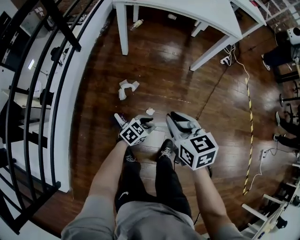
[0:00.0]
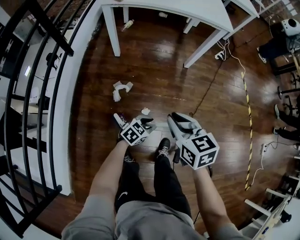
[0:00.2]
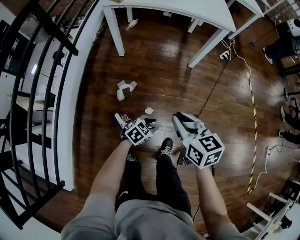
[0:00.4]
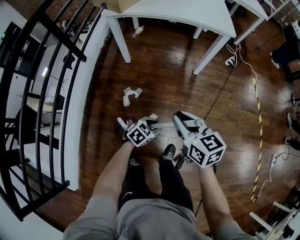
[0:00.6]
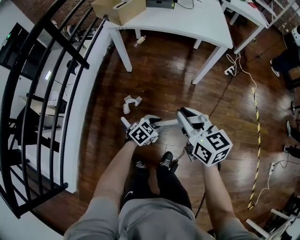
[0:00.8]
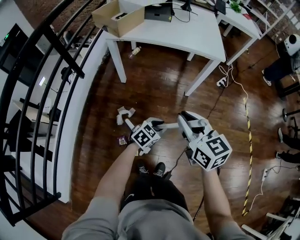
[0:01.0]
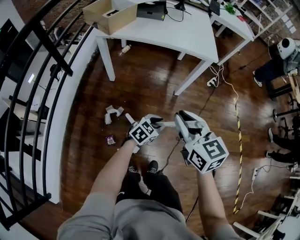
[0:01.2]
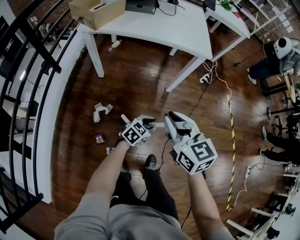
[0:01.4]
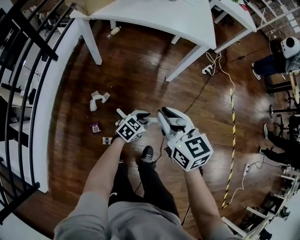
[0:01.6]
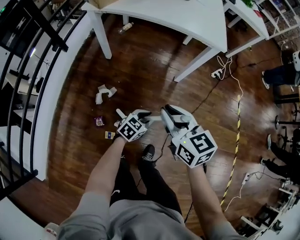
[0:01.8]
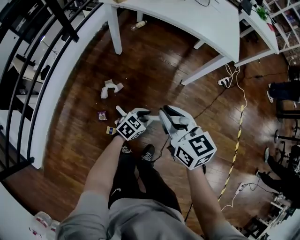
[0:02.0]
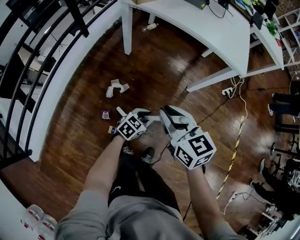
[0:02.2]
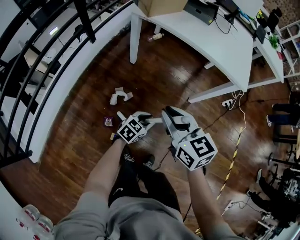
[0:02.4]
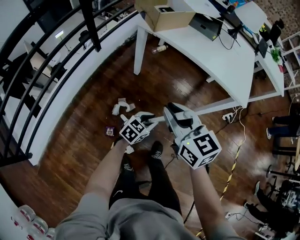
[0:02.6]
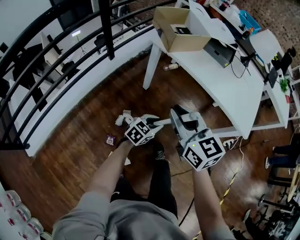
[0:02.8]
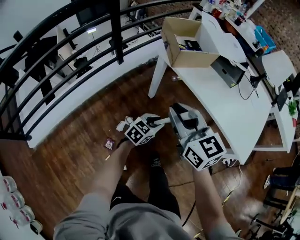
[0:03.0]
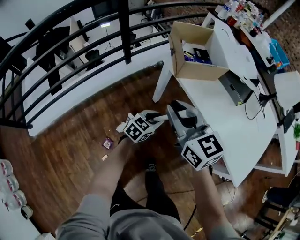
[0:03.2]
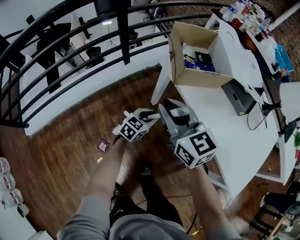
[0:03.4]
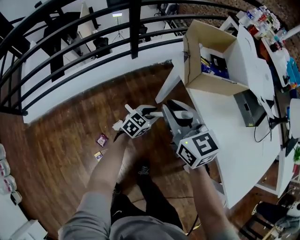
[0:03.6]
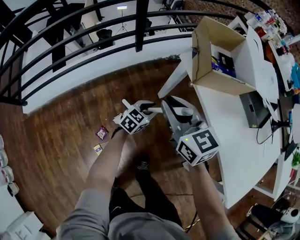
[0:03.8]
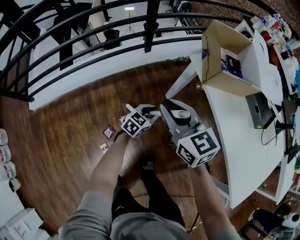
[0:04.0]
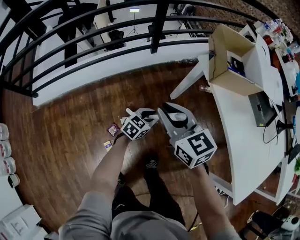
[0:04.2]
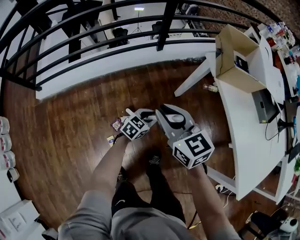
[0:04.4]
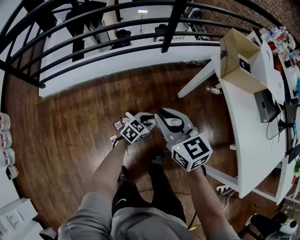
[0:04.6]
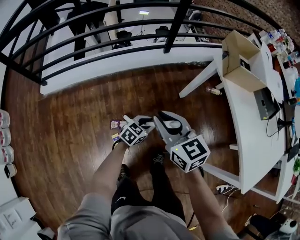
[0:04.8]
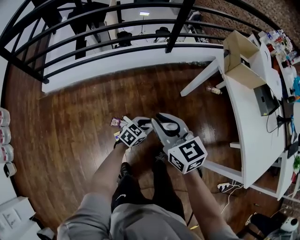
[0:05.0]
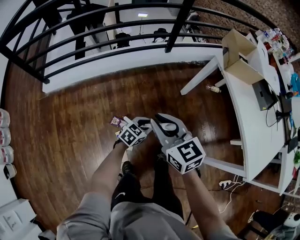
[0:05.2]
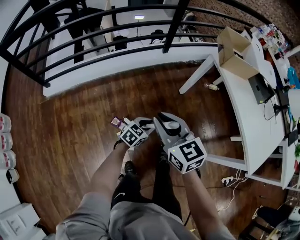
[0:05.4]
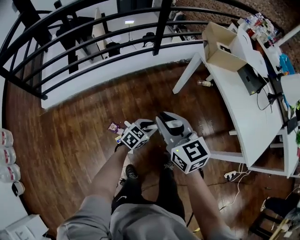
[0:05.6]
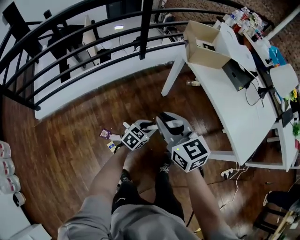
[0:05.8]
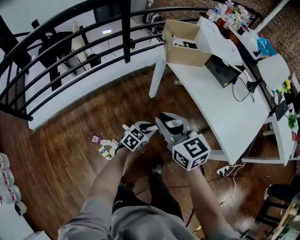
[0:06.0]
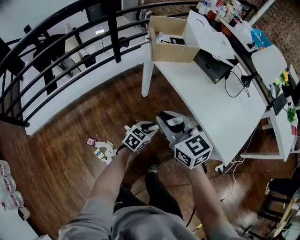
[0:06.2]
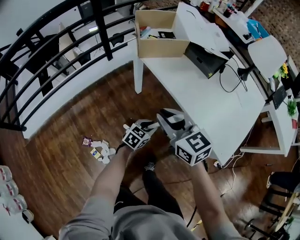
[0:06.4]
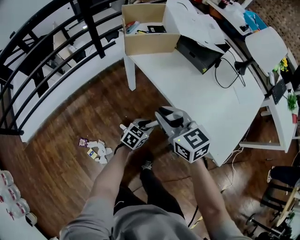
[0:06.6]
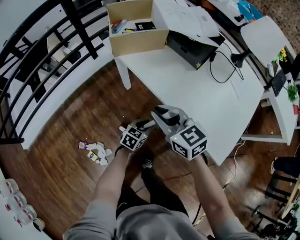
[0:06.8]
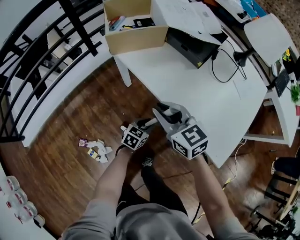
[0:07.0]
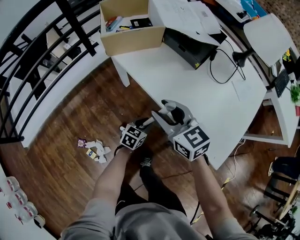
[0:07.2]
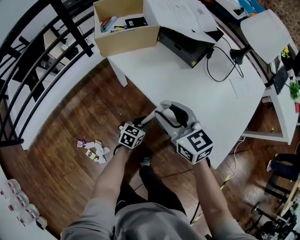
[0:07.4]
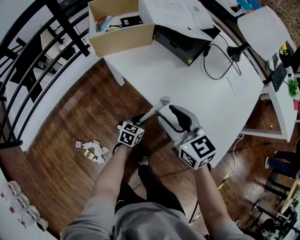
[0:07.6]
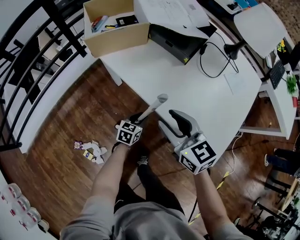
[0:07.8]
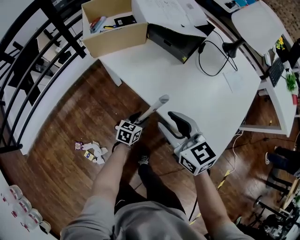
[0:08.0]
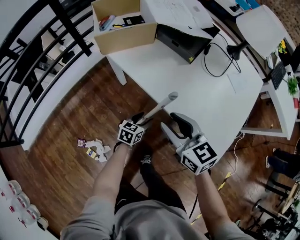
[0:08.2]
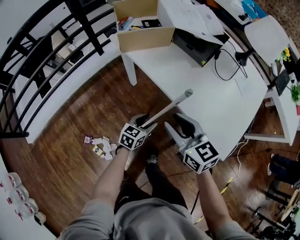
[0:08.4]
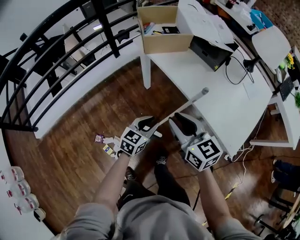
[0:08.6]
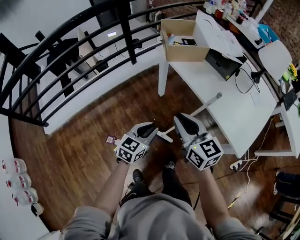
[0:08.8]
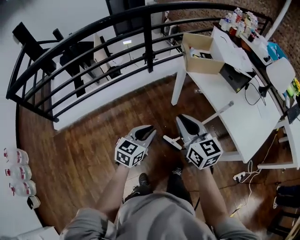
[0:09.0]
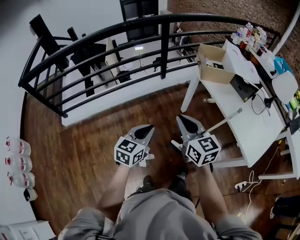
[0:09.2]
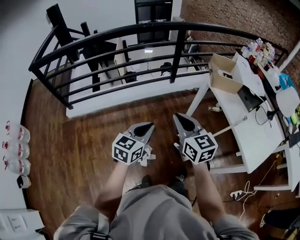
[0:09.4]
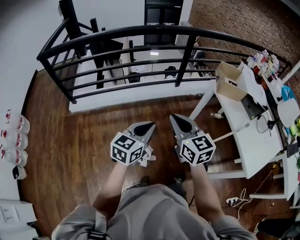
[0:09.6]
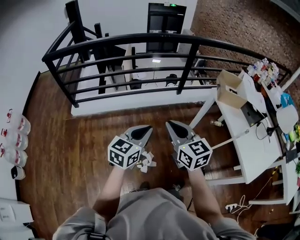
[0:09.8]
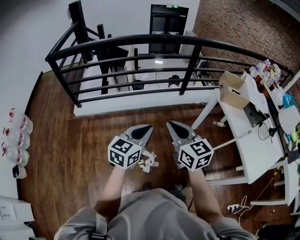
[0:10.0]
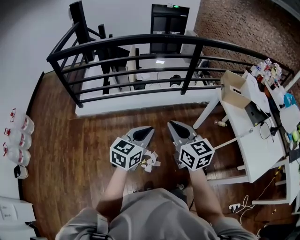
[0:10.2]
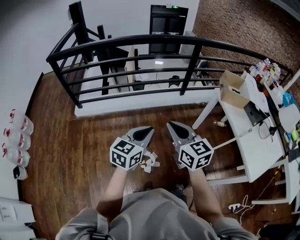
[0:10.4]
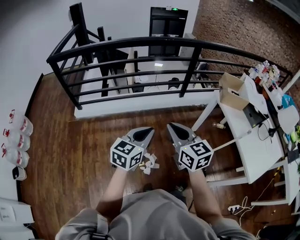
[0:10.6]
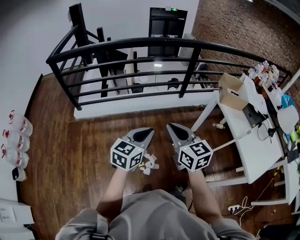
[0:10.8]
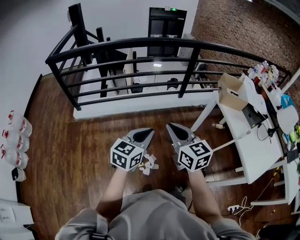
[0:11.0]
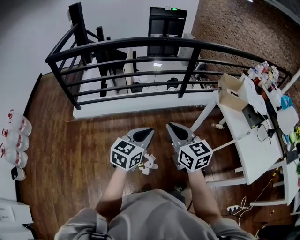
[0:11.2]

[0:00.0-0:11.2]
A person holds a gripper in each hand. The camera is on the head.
0:00.0 to 0:01.6: Both grippers travel together forward and to the right, roughly 25 cm.
0:01.6 to 0:03.2: The pair of grippers is taken approximately 40 cm. The left gripper rotates about 50 degrees. Meanwhile the right gripper changes its angle by some 50 degrees.
0:03.2 to 0:04.8: The two grippers go approximately 25 cm to the left, backward and downward. The right gripper swivels about 20 degrees; the left gripper changes its angle by roughly 20 degrees.
0:04.8 to 0:06.4: Both grippers move to the right, some 30 cm.
0:06.4 to 0:08.0: The right gripper heads to the right, covering some 15 cm, and opens up. The left gripper moves to the right, downward and forward, about 10 cm.
0:08.0 to 0:09.6: The two grippers travel together, about 60 cm. The left gripper turns by about 40 degrees, and closes its fingers; the right gripper swivels some 30 degrees, and closes its fingers.
0:09.6 to 0:11.2: The right gripper heads to the left, covering some 5 cm. Meanwhile the left gripper changes place by some 5 cm.

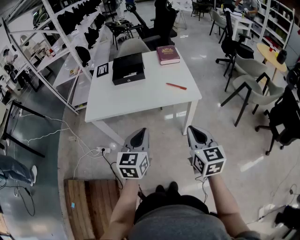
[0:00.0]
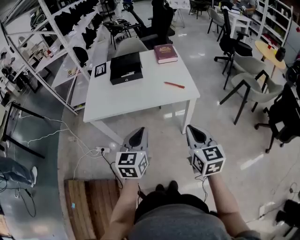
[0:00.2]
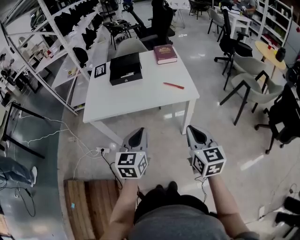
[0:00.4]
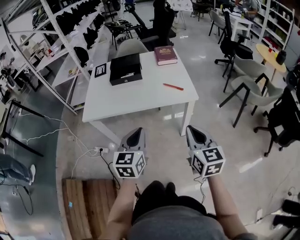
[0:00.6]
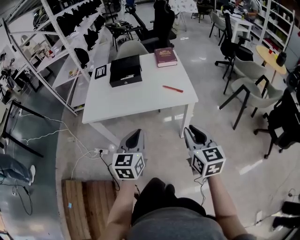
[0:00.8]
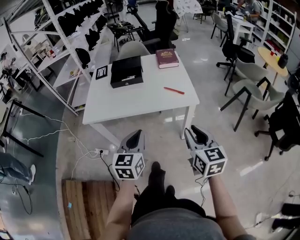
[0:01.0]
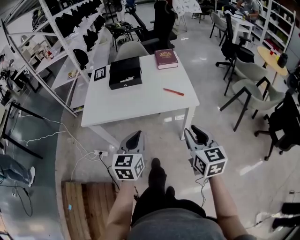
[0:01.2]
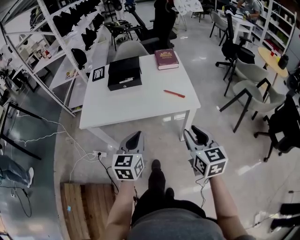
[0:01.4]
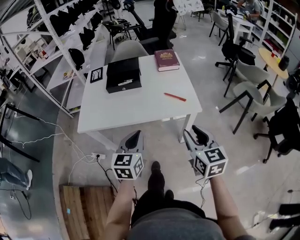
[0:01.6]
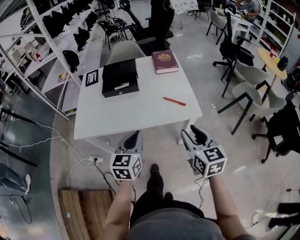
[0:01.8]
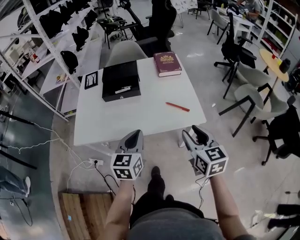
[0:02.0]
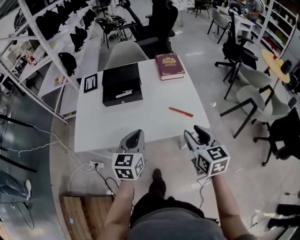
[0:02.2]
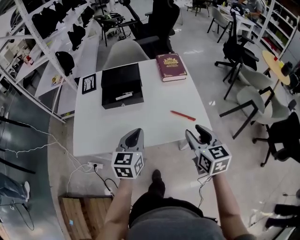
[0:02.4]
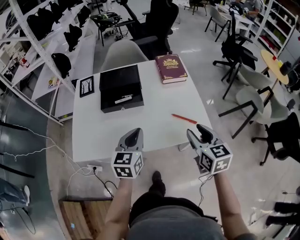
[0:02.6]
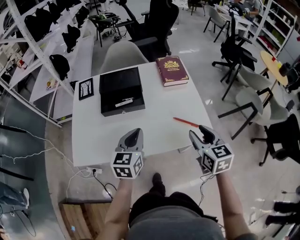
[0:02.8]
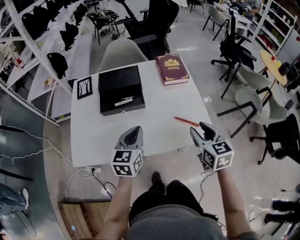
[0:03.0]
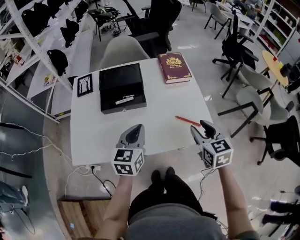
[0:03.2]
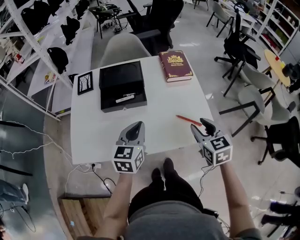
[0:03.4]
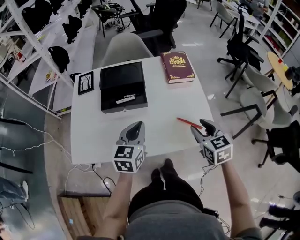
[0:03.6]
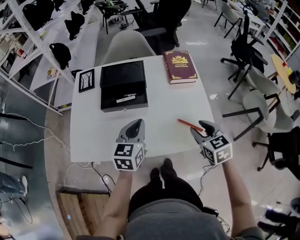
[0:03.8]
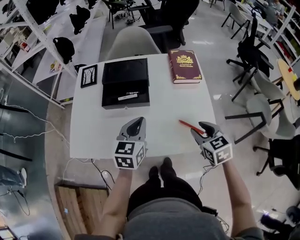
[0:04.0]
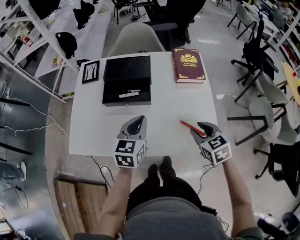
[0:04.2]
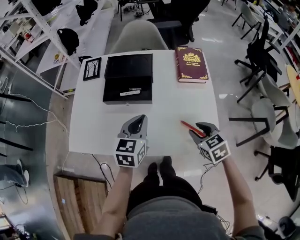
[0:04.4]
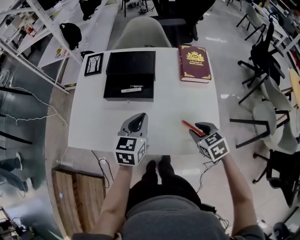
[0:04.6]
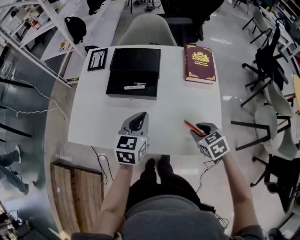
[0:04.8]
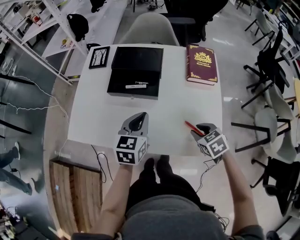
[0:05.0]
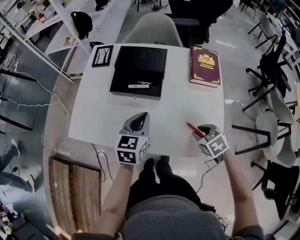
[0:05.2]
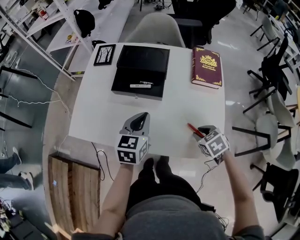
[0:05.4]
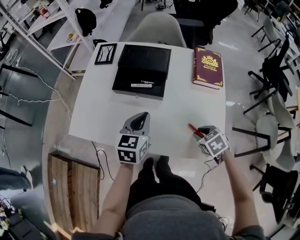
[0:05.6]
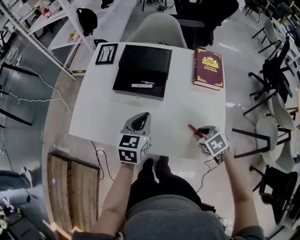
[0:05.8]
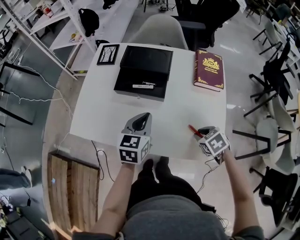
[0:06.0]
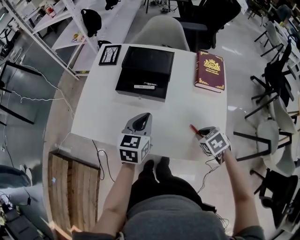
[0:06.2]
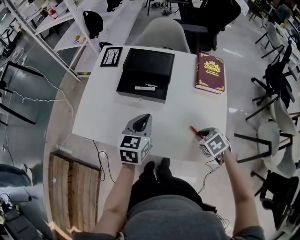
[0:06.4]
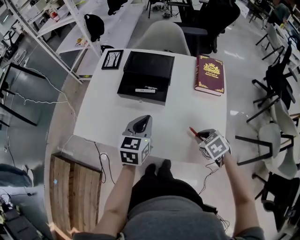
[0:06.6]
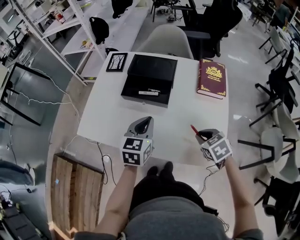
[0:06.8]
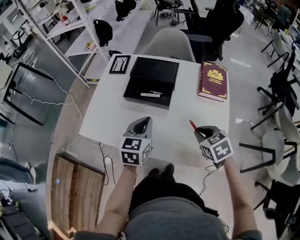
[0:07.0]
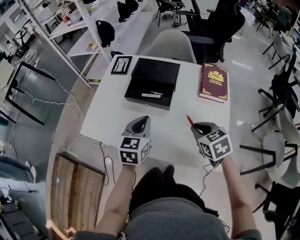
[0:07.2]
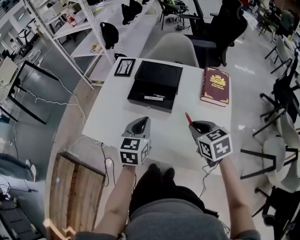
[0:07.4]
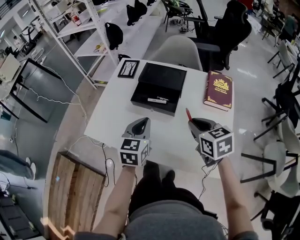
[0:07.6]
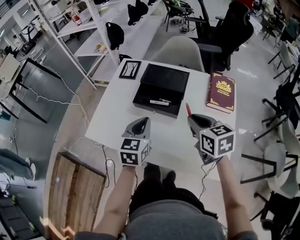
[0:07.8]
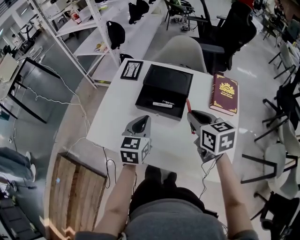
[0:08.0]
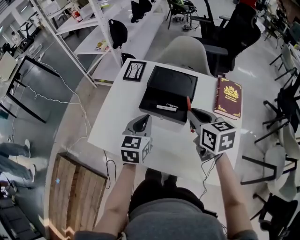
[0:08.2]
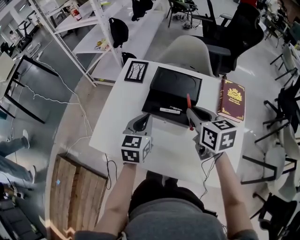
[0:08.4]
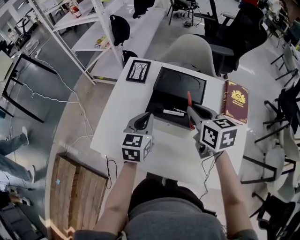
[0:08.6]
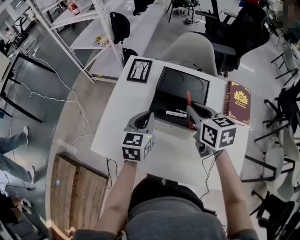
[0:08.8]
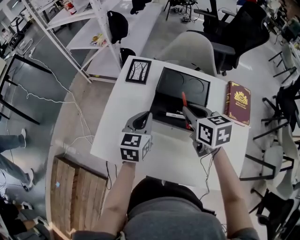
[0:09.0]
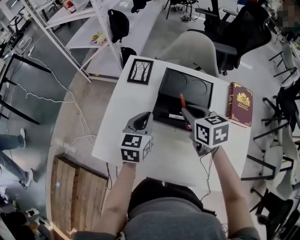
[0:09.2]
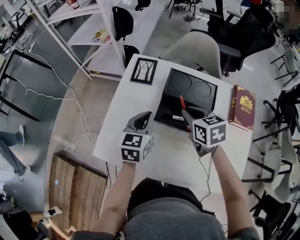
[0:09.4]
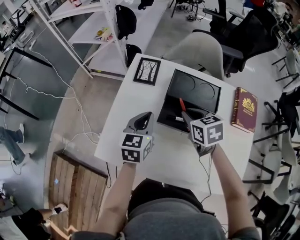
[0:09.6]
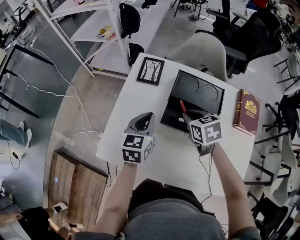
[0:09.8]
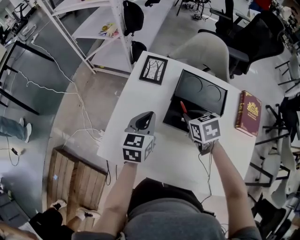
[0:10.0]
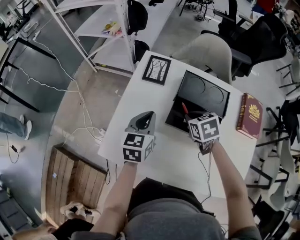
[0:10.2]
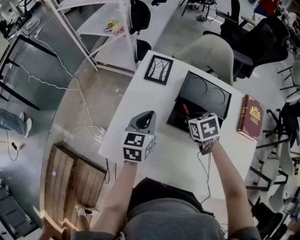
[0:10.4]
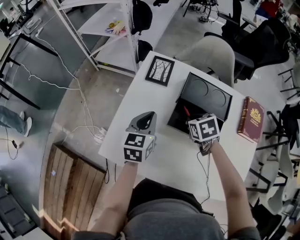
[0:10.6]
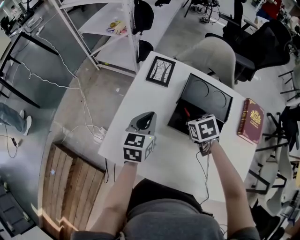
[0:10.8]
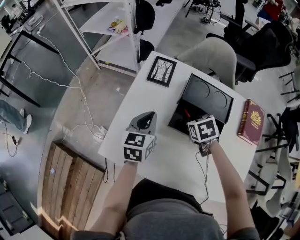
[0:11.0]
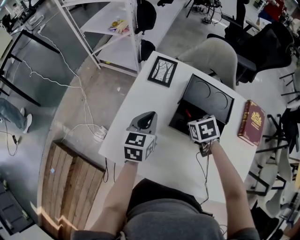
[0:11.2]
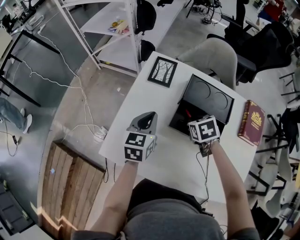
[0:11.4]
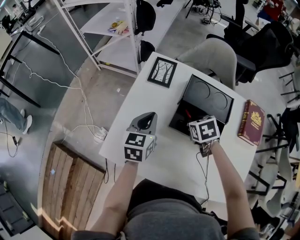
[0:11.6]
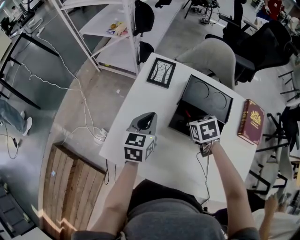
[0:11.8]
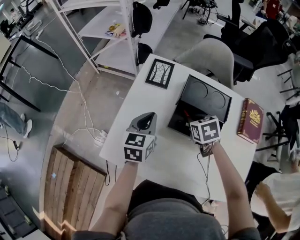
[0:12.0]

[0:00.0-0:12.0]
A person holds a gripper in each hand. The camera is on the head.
0:00.0 to 0:01.6: The two grippers go roughly 10 cm forward. The right gripper opens up.
0:01.6 to 0:03.0: The grippers both shift forward by approximately 20 cm.
0:03.0 to 0:04.4: The left gripper heads forward, covering approximately 5 cm. The right gripper is displaced downward and forward by approximately 10 cm, and turns by some 30 degrees.
0:04.4 to 0:06.0: The right gripper moves downward, roughly 5 cm, and turns by roughly 20 degrees.
0:06.0 to 0:07.6: The right gripper goes approximately 20 cm upward, forward and to the left, and angles its fingers upward, by some 30 degrees. The left gripper shifts by about 5 cm.
0:07.6 to 0:09.0: Both grippers move forward and to the left, some 20 cm.
0:09.0 to 0:10.4: The left gripper is displaced to the left by approximately 5 cm. Meanwhile the right gripper moves downward, roughly 10 cm, and turns by some 30 degrees.
0:10.4 to 0:12.0: There are only small adjustments of the grippers.
